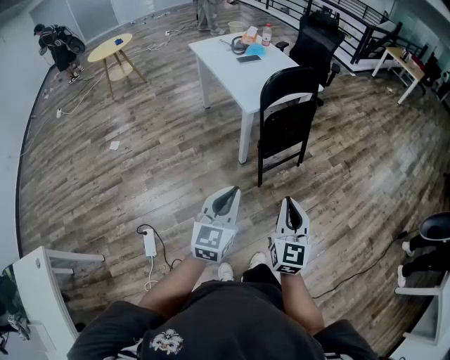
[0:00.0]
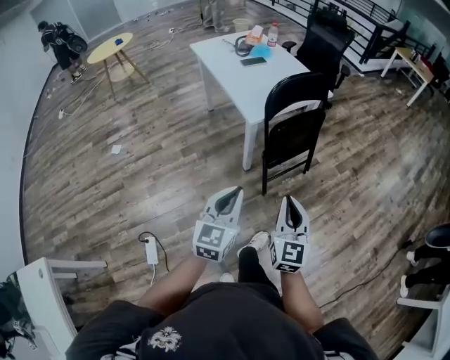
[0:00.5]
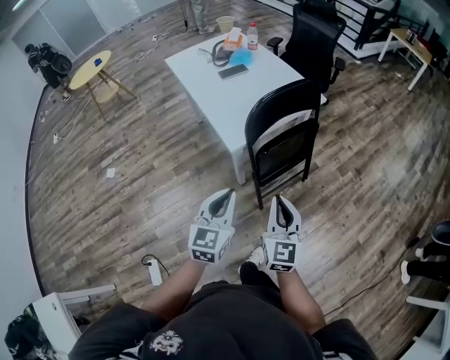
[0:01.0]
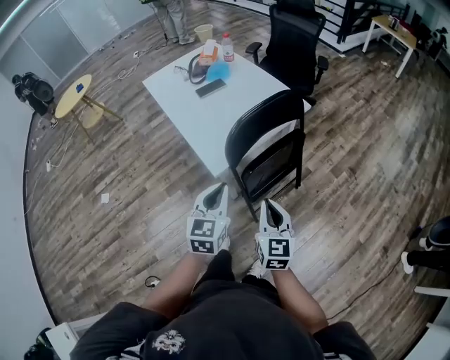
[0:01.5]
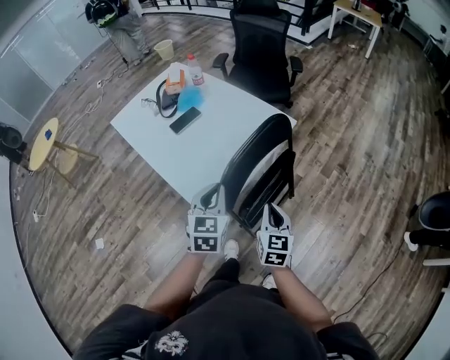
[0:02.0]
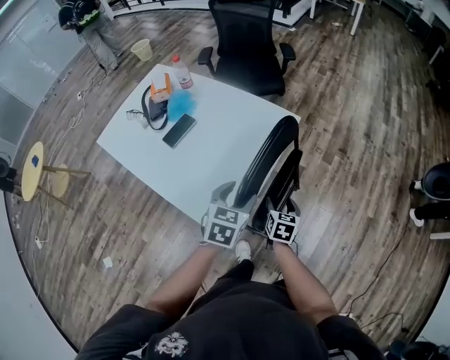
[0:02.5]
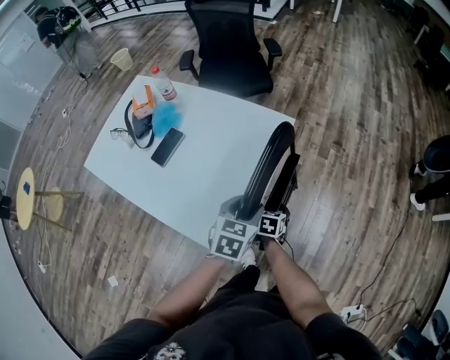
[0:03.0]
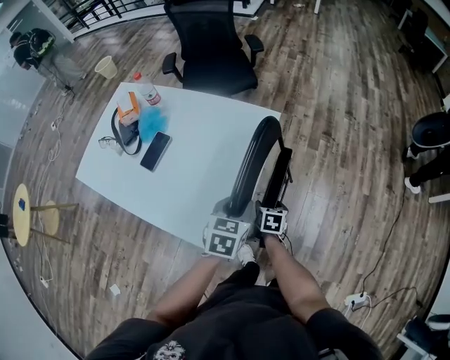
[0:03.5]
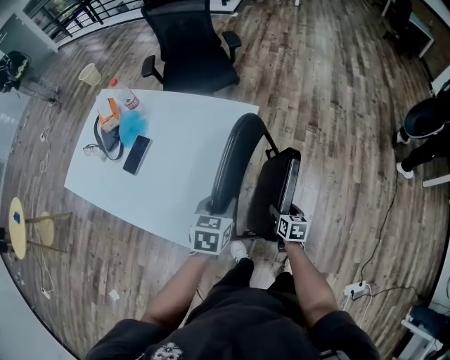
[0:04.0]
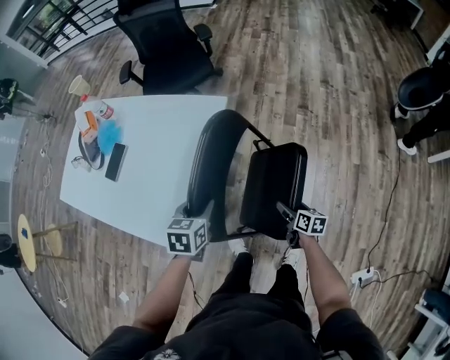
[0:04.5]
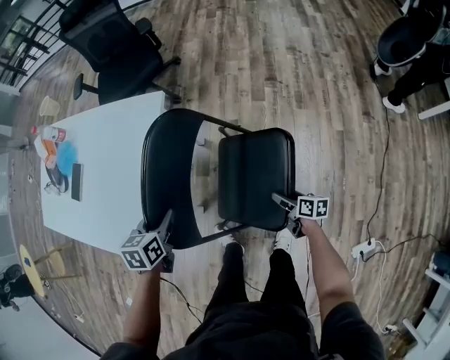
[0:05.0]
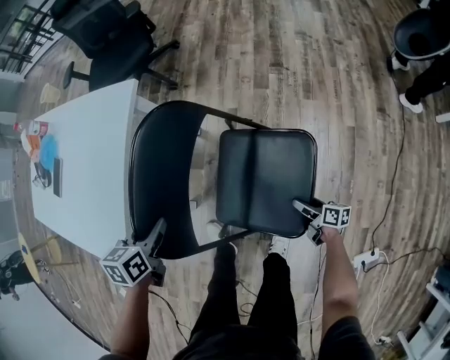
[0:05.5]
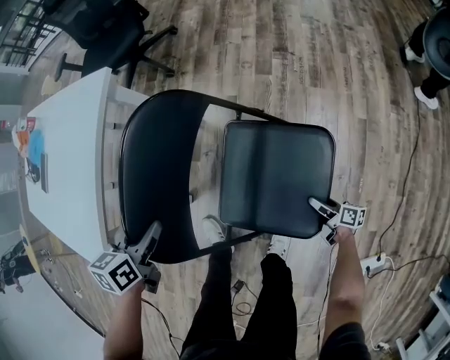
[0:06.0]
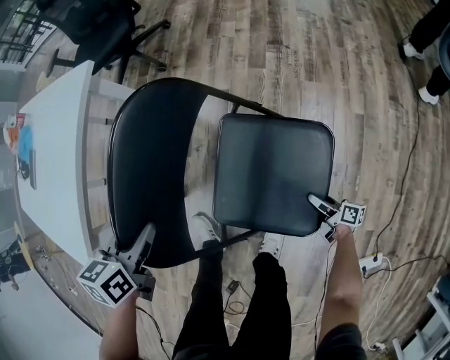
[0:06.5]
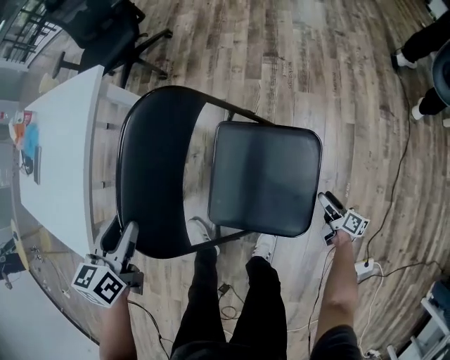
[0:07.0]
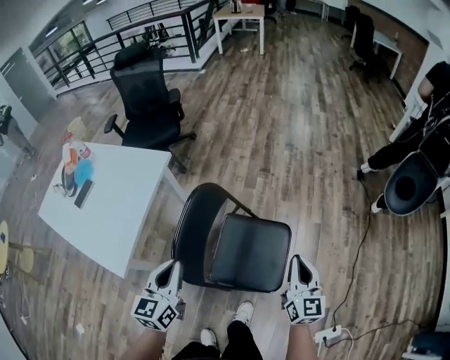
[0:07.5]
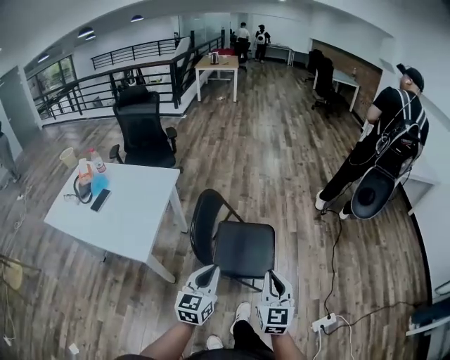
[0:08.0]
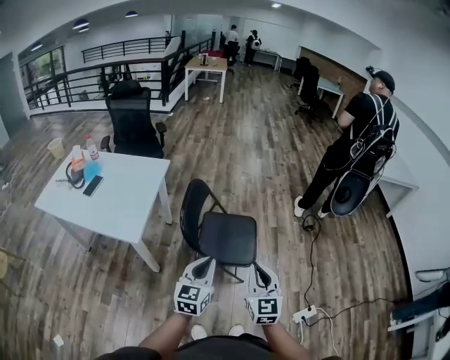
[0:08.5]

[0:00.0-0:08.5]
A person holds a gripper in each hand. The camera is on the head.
0.0 to 2.0 s: The two grippers travel together, forward, about 60 cm. The right gripper swivels about 30 degrees. The left gripper changes its angle by about 20 degrees.
2.0 to 4.0 s: The right gripper heads downward, covering about 20 cm, swivels approximately 40 degrees, and opens its fingers, while the left gripper ends up roughly 15 cm from where it was, turns by approximately 40 degrees, and opens.
4.0 to 6.5 s: The left gripper goes some 30 cm to the right and downward; the right gripper shifts roughly 60 cm to the right and downward, and swivels some 50 degrees.
6.5 to 8.5 s: The two grippers travel together, roughly 40 cm. The left gripper points its fingers about 40 degrees further upward, and closes; the right gripper moves upward, some 70 cm, twists approximately 80 degrees counterclockwise, seen from behind, and closes.

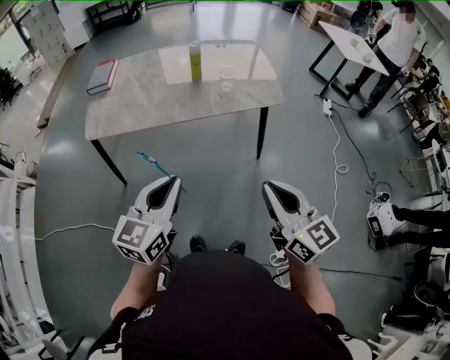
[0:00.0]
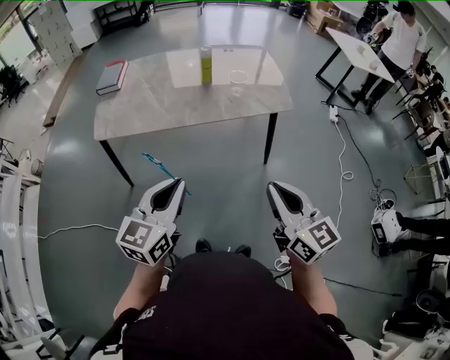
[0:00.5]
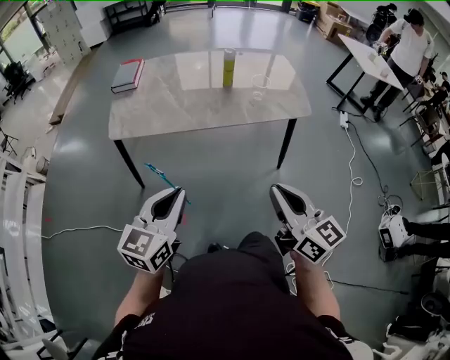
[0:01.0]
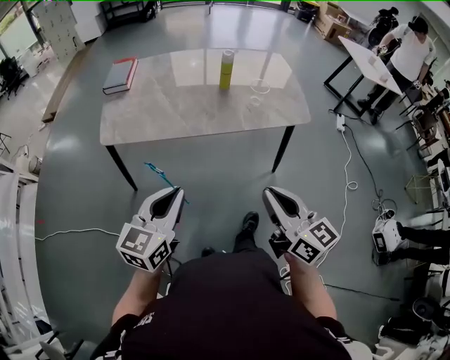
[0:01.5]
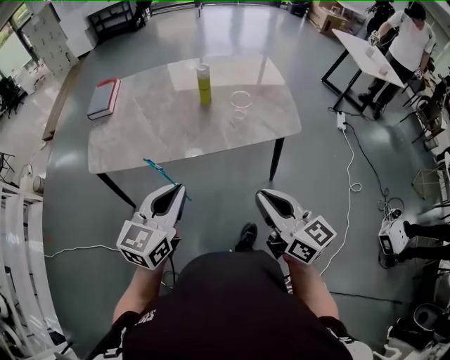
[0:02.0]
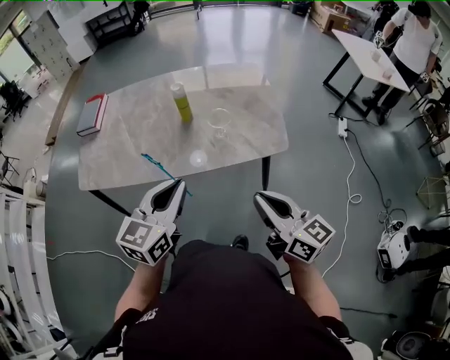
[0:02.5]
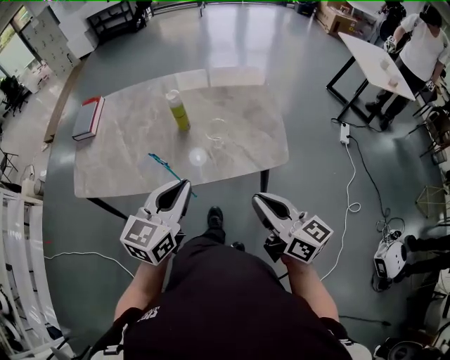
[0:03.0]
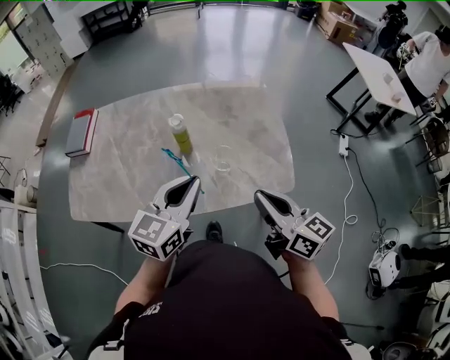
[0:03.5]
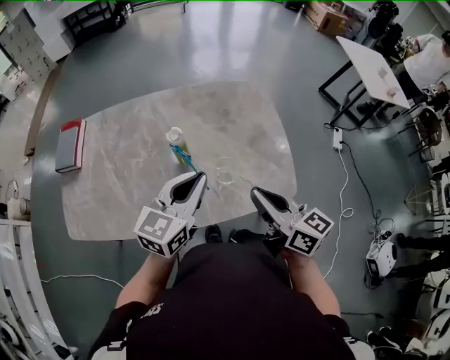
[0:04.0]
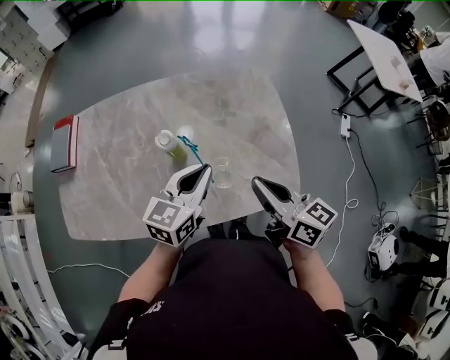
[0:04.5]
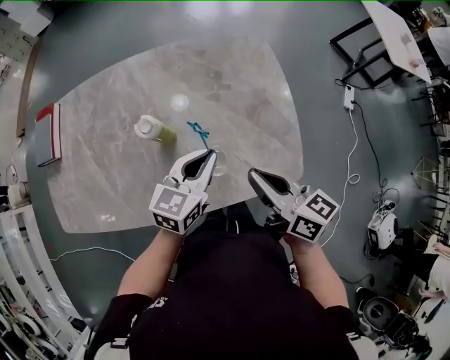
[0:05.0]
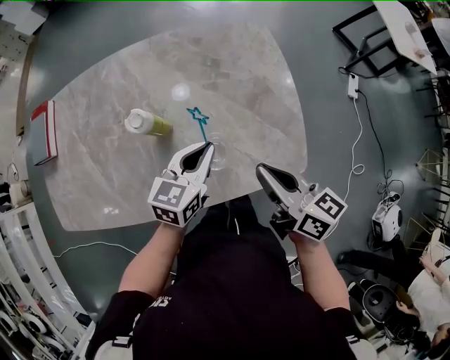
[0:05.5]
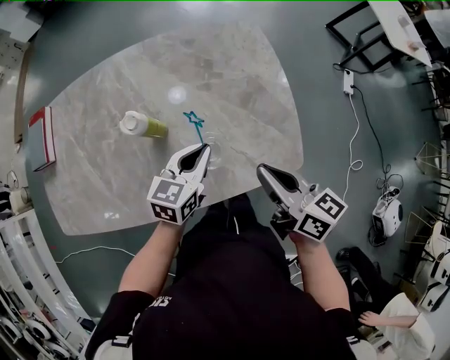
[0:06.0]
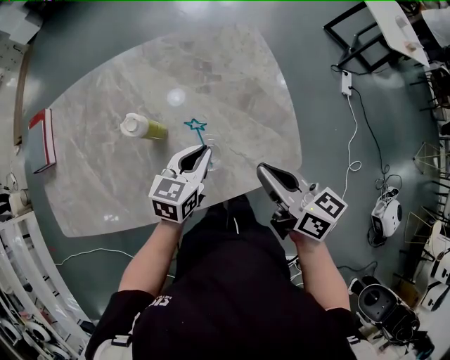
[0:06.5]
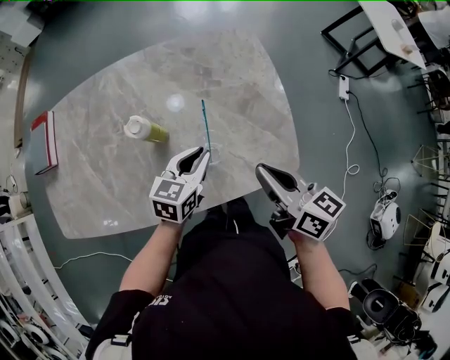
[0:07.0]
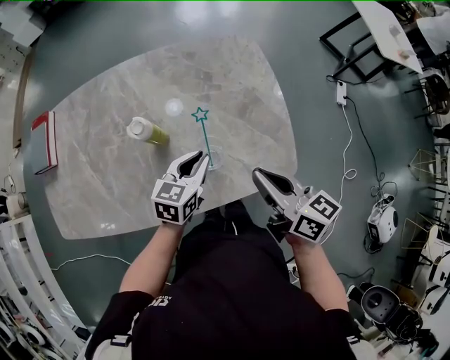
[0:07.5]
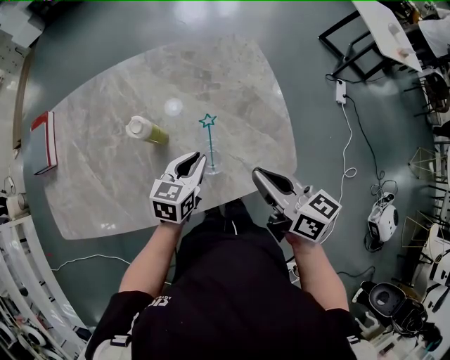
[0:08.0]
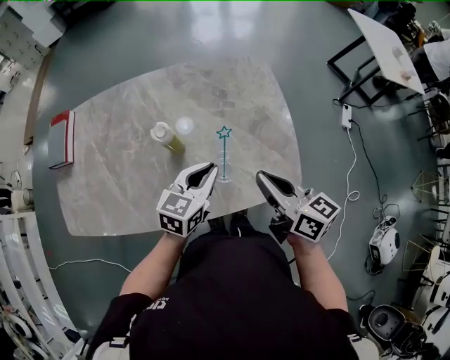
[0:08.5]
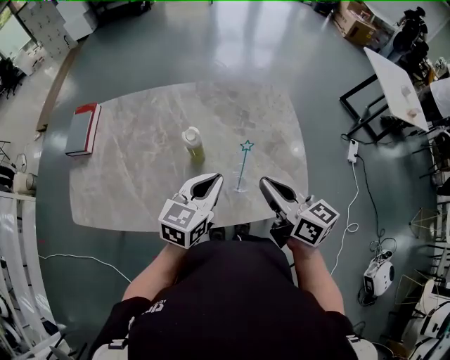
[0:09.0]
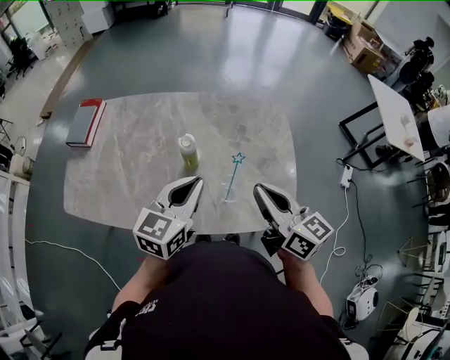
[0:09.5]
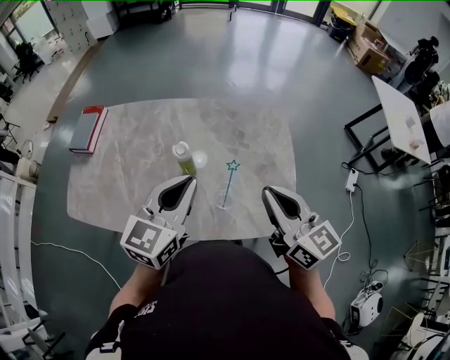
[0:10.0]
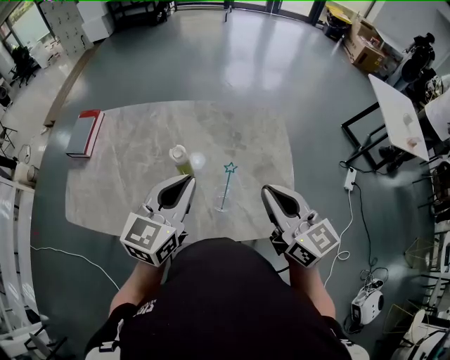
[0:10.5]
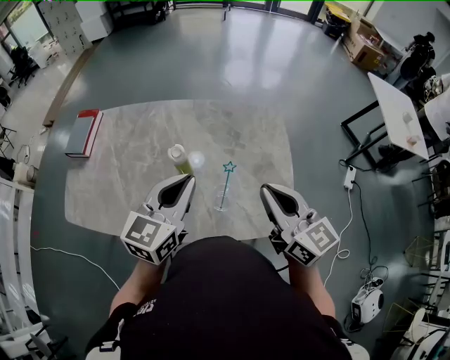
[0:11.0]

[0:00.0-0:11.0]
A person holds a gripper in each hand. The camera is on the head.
0.0 to 2.0 s: Both grippers travel together forward, roughly 15 cm.
2.0 to 3.5 s: The grippers both shift forward and to the right by approximately 30 cm.
3.5 to 5.5 s: The left gripper is displaced downward and forward by about 25 cm. The right gripper heads forward and downward, covering about 15 cm.
5.5 to 7.5 s: The grippers make only small movements.
7.5 to 9.0 s: The right gripper moves upward and to the left, about 10 cm; the left gripper moves upward and to the left, some 15 cm.
9.0 to 11.0 s: The left gripper goes about 10 cm upward. The right gripper moves upward and to the right, some 10 cm, and turns by some 20 degrees.

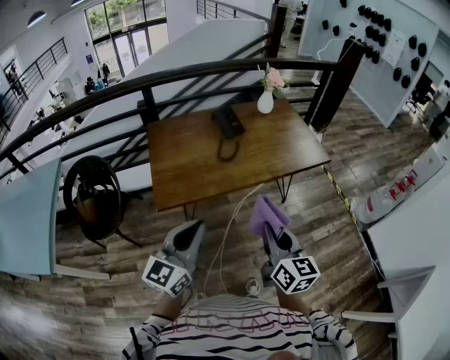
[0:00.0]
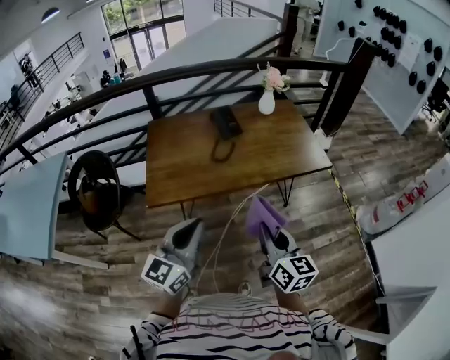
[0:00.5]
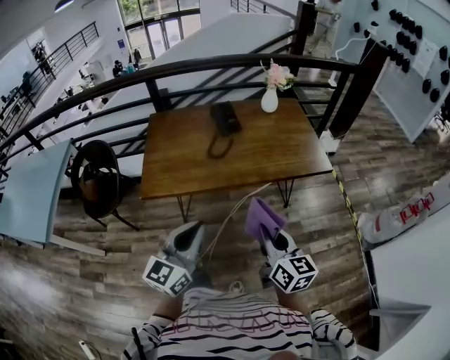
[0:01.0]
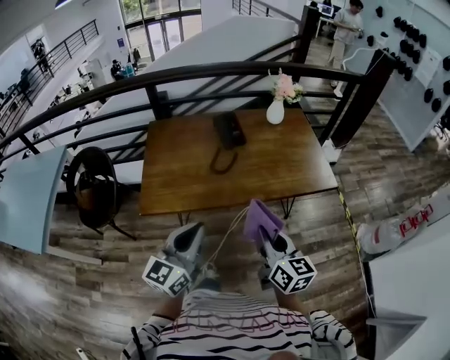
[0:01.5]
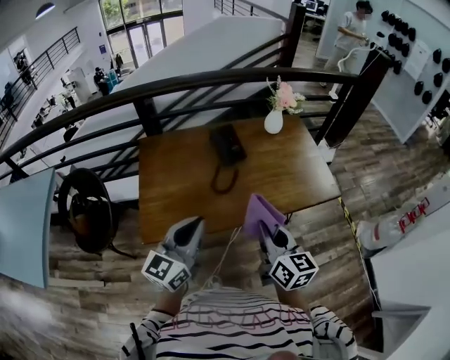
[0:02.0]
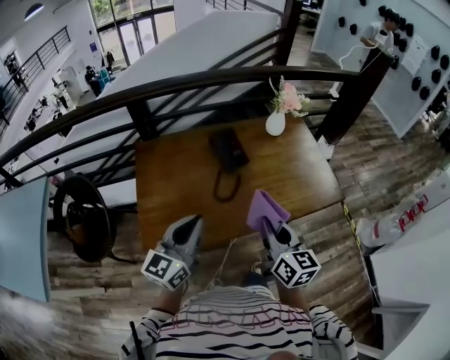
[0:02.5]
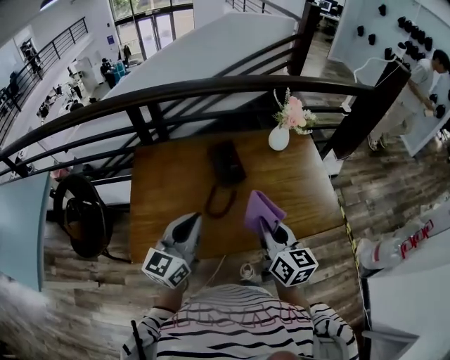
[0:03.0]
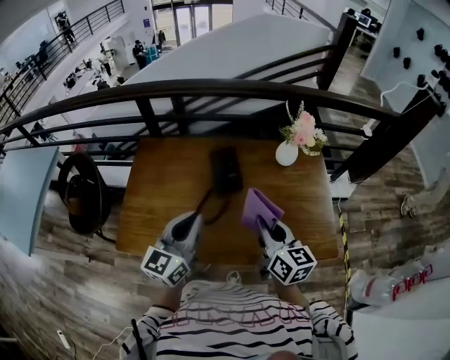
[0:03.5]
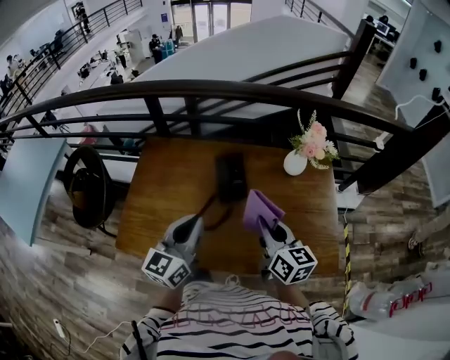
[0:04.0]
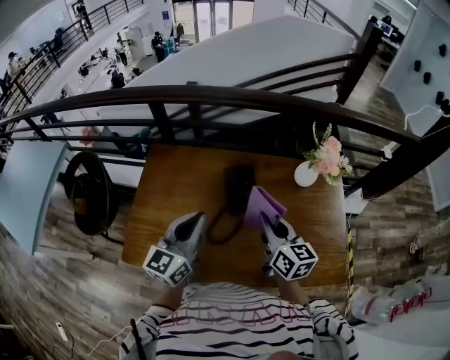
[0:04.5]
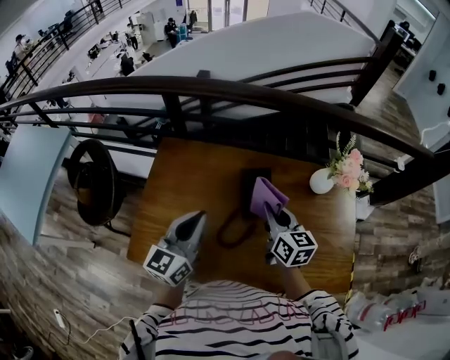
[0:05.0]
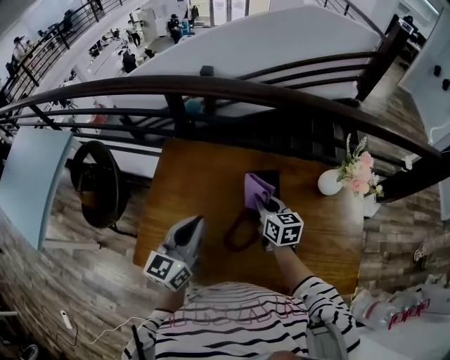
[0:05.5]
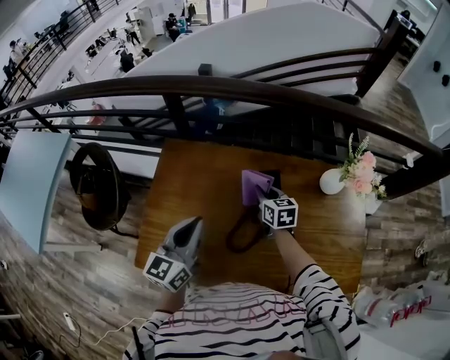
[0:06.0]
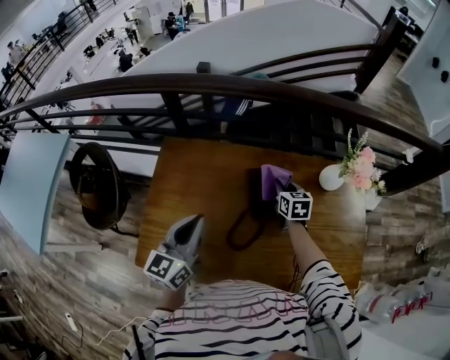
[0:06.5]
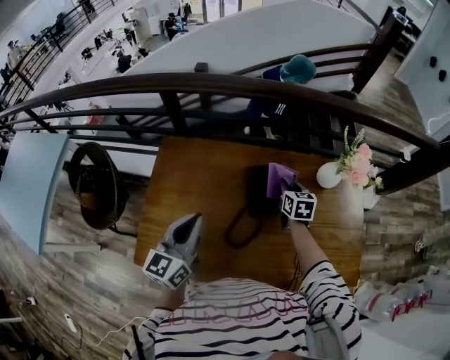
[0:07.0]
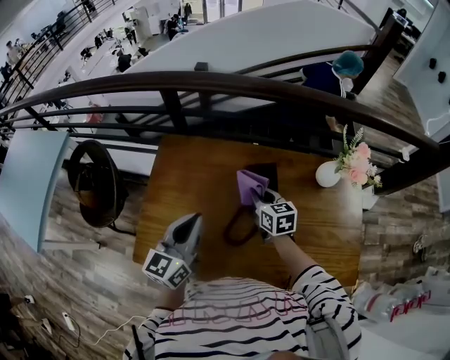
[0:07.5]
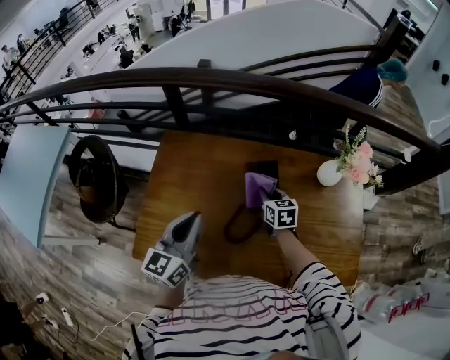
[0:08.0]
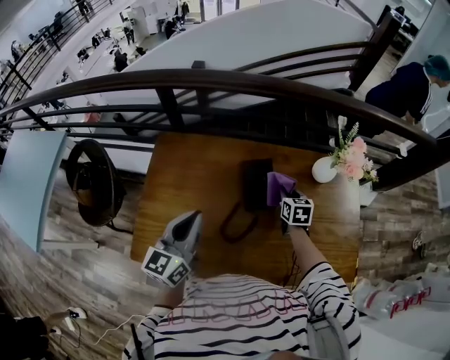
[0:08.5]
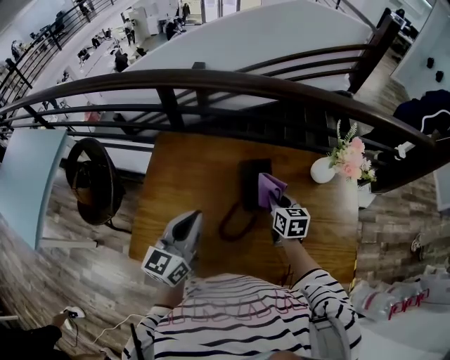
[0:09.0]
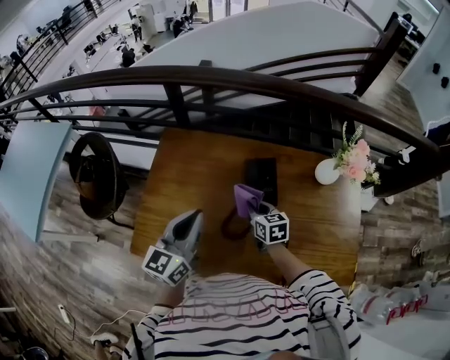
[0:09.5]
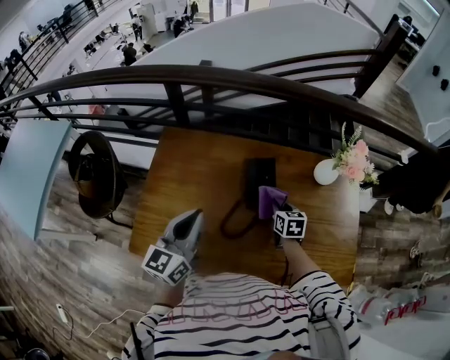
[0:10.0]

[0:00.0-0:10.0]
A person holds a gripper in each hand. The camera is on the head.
0.0 to 2.0 s: The two grippers go roughly 25 cm forward.
2.0 to 4.0 s: The left gripper moves forward and to the right, approximately 30 cm, and changes its angle by roughly 20 degrees; the right gripper goes roughly 35 cm forward, and swivels some 20 degrees.
4.0 to 6.0 s: The right gripper is displaced forward, downward and to the left by some 35 cm, and changes its angle by approximately 20 degrees, while the left gripper goes about 20 cm forward and to the left.
6.0 to 8.0 s: The right gripper goes to the right and returns, roughly 10 cm each way.
8.0 to 10.0 s: The right gripper moves left and right over about 15 cm, changing direction 2 times.
